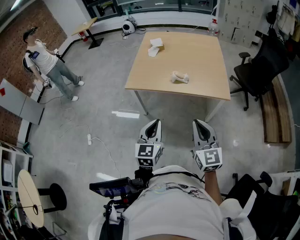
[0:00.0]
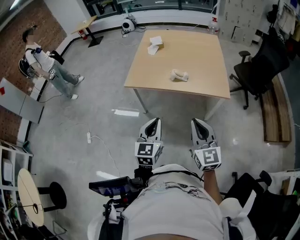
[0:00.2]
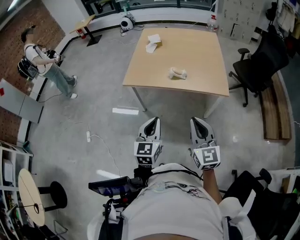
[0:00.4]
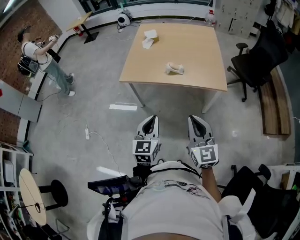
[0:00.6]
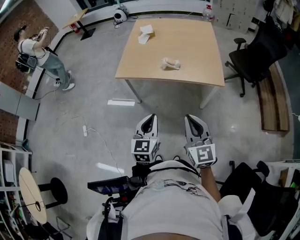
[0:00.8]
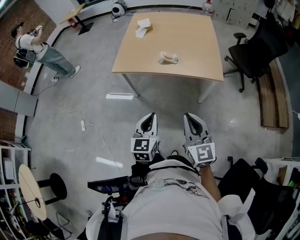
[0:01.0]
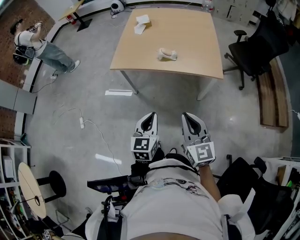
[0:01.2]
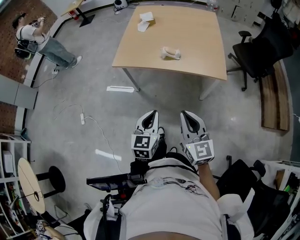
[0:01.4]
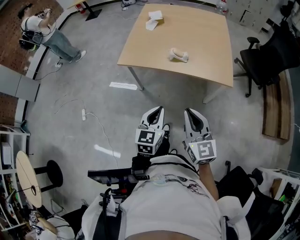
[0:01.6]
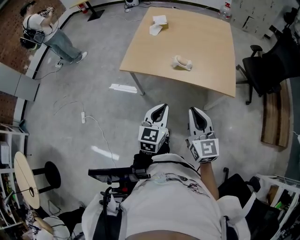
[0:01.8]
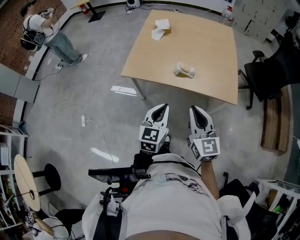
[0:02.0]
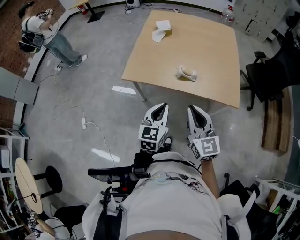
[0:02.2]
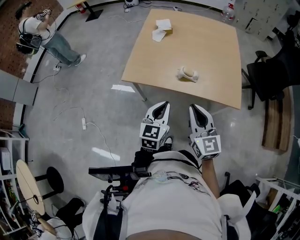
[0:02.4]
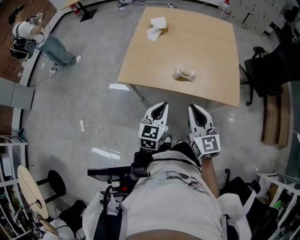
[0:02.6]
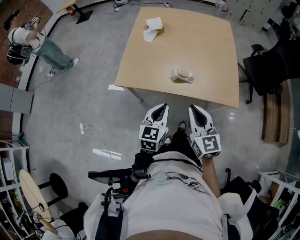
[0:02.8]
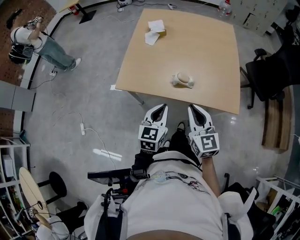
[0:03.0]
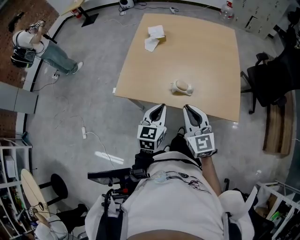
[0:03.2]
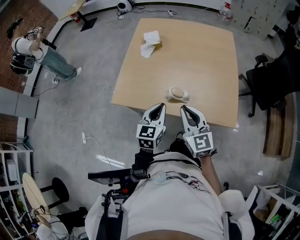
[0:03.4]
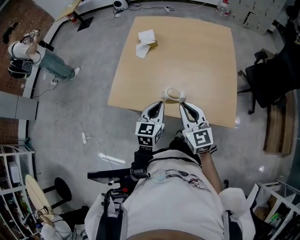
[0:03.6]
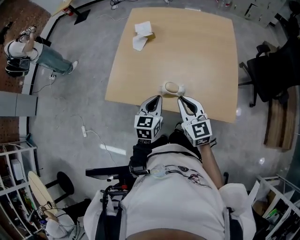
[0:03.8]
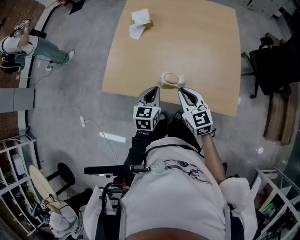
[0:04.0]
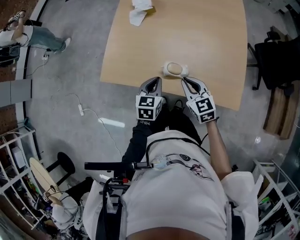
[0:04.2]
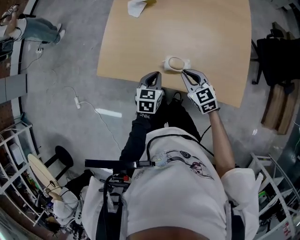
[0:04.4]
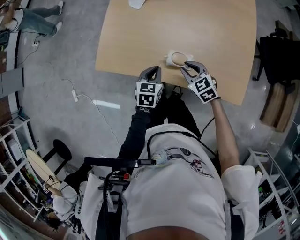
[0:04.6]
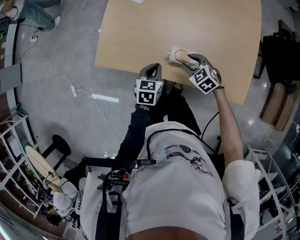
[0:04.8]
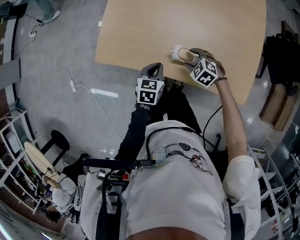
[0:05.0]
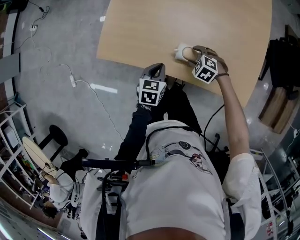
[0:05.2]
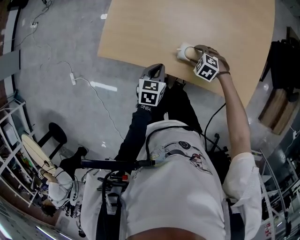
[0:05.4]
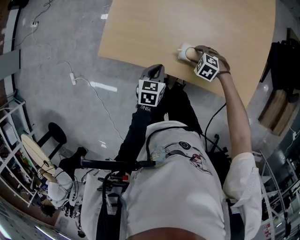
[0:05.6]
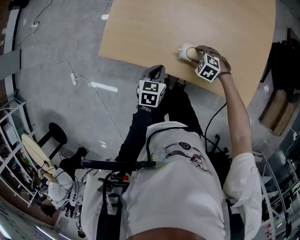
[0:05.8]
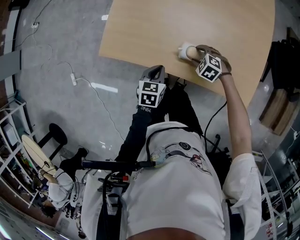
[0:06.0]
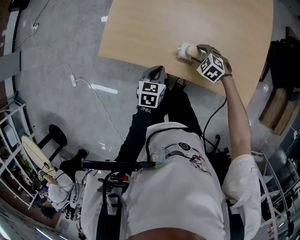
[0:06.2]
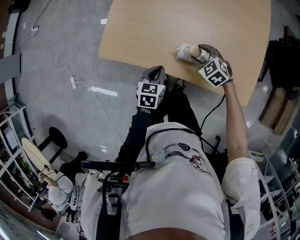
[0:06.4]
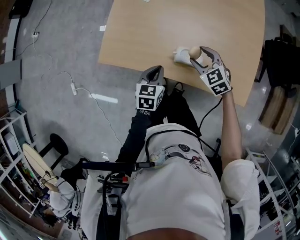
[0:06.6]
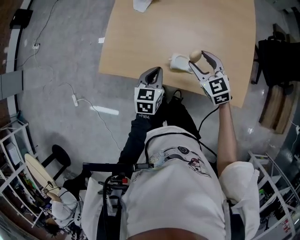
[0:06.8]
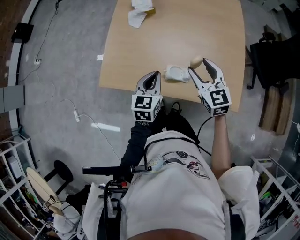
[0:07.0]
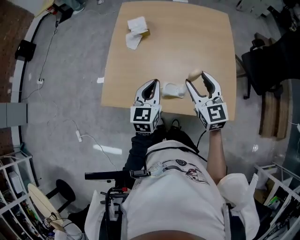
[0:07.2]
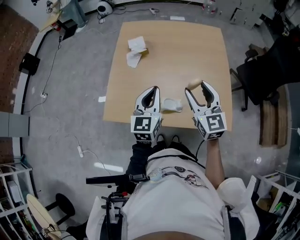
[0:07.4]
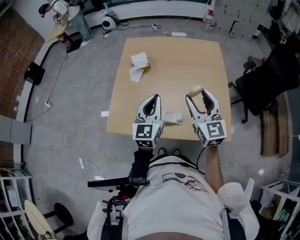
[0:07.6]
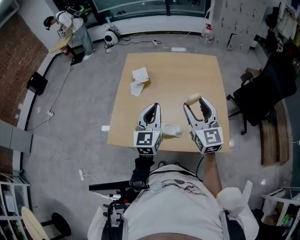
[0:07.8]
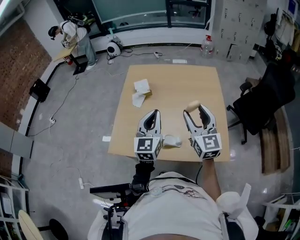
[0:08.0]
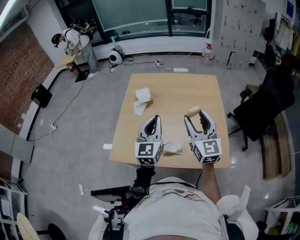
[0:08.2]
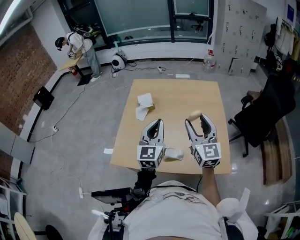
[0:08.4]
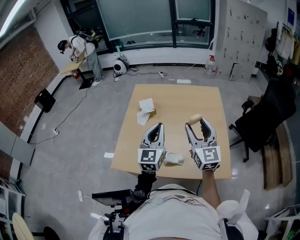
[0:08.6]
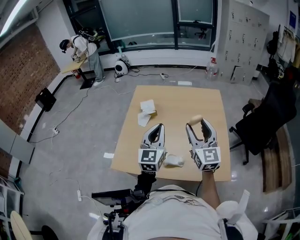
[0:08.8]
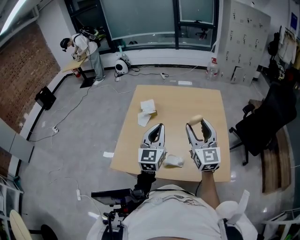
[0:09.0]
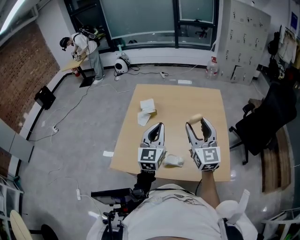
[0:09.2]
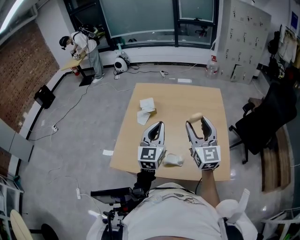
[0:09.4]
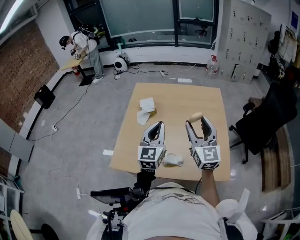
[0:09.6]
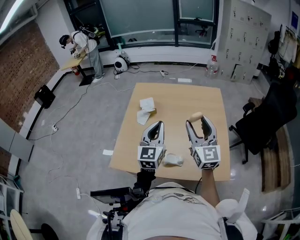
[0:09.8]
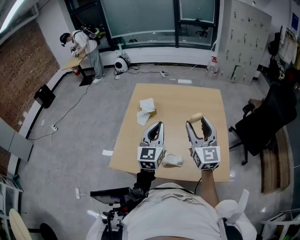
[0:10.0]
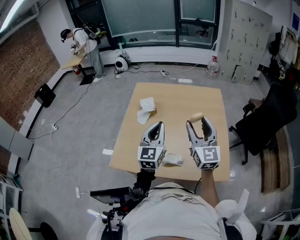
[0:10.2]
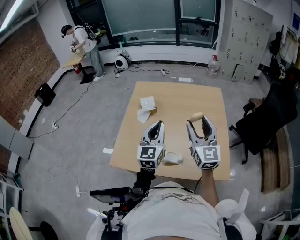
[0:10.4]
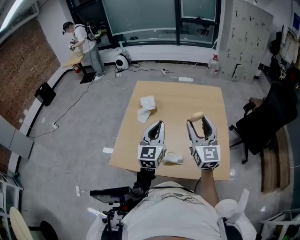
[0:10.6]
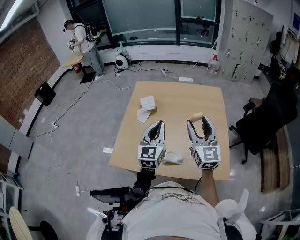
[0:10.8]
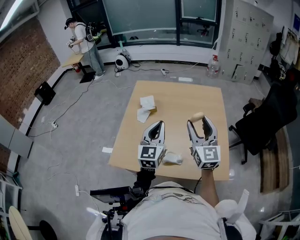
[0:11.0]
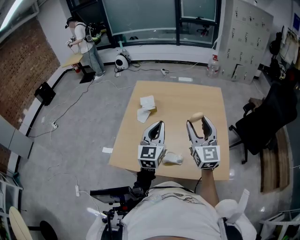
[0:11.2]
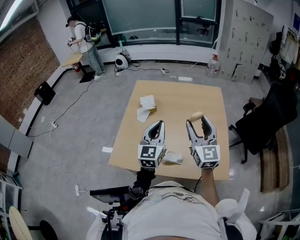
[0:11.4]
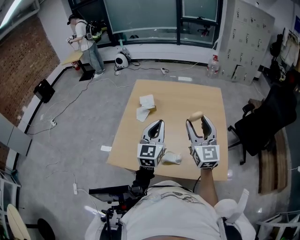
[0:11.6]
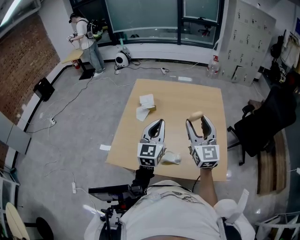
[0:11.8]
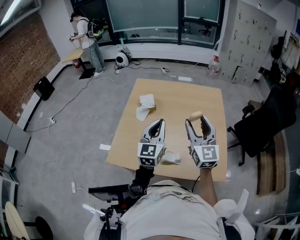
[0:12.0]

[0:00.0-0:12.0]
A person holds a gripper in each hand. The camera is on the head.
0:00.0 to 0:01.6: The right gripper moves about 5 cm; the left gripper heads to the right and downward, covering some 10 cm.
0:01.6 to 0:03.0: Both grippers travel together forward, about 25 cm.
0:03.0 to 0:04.4: Both grippers move forward and downward, approximately 25 cm. The right gripper rotates approximately 30 degrees. The left gripper swivels about 20 degrees.
0:04.4 to 0:06.0: The left gripper shifts roughly 10 cm downward and to the left, while the right gripper heads downward, covering approximately 15 cm, points its fingers roughly 40 degrees further downward, and opens up.
0:06.0 to 0:07.6: The grippers both shift upward by roughly 35 cm. The right gripper tilts its fingers about 70 degrees upward. The left gripper angles its fingers upward, by about 40 degrees.
0:07.6 to 0:09.0: The right gripper heads upward, covering approximately 5 cm; the left gripper ends up about 5 cm from where it was.
0:09.0 to 0:10.4: Neither gripper changes place.
0:10.4 to 0:12.0: Neither gripper changes place.

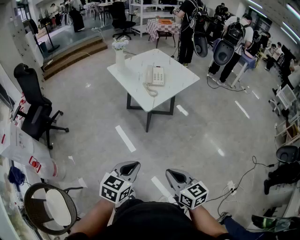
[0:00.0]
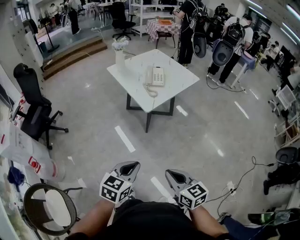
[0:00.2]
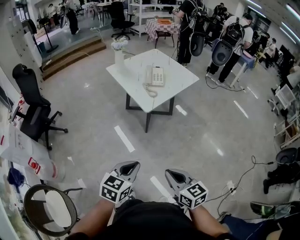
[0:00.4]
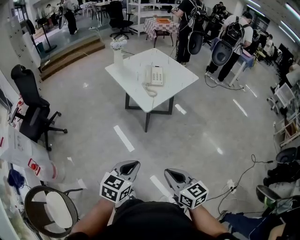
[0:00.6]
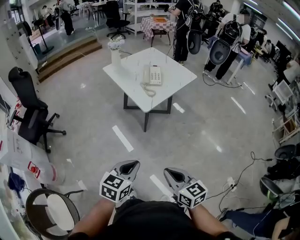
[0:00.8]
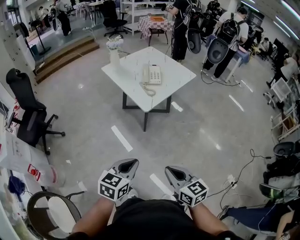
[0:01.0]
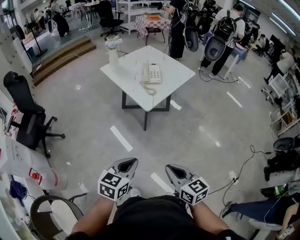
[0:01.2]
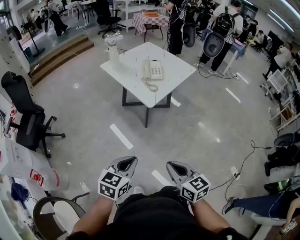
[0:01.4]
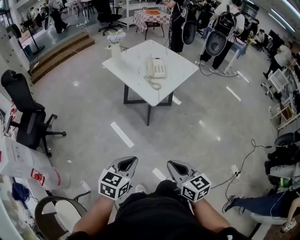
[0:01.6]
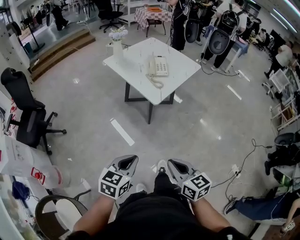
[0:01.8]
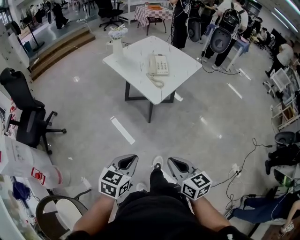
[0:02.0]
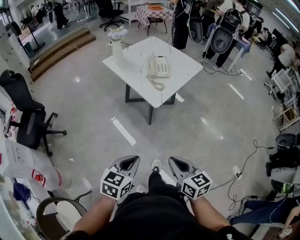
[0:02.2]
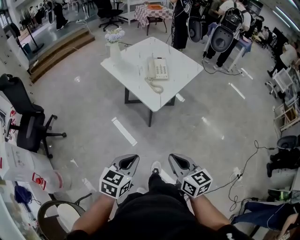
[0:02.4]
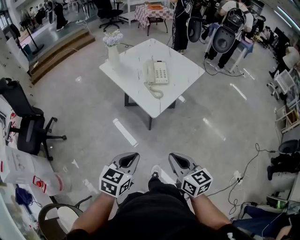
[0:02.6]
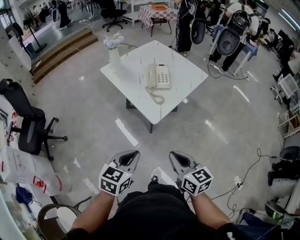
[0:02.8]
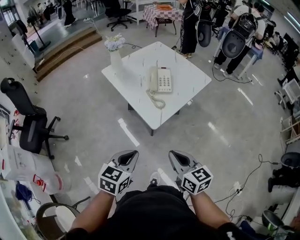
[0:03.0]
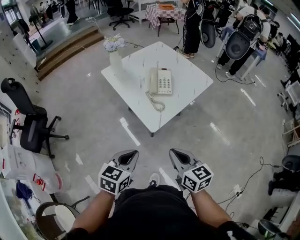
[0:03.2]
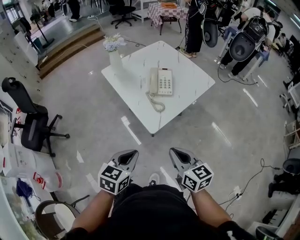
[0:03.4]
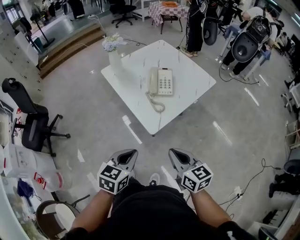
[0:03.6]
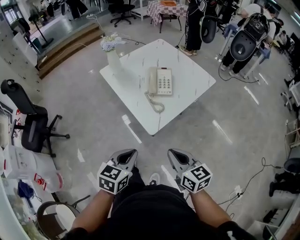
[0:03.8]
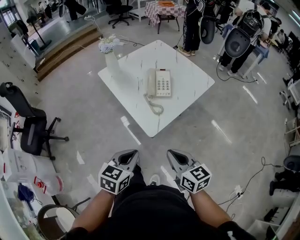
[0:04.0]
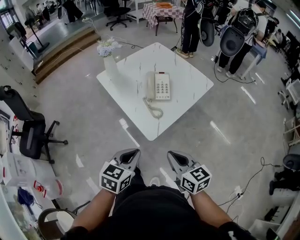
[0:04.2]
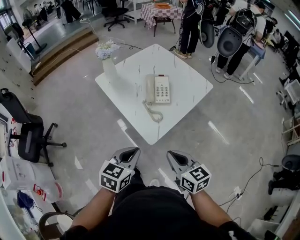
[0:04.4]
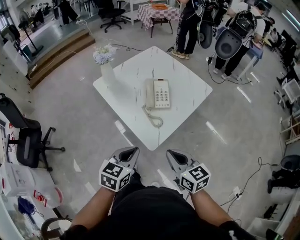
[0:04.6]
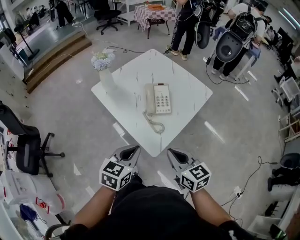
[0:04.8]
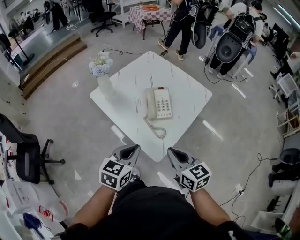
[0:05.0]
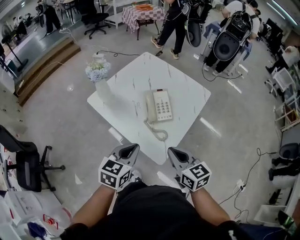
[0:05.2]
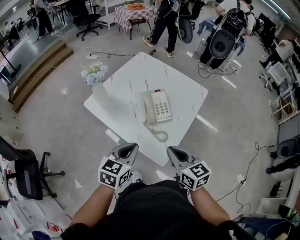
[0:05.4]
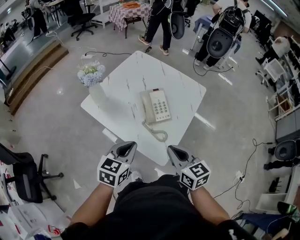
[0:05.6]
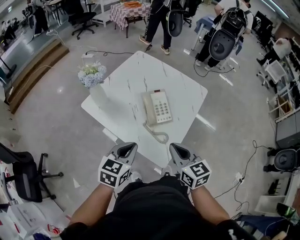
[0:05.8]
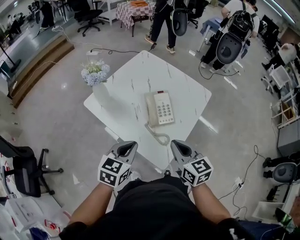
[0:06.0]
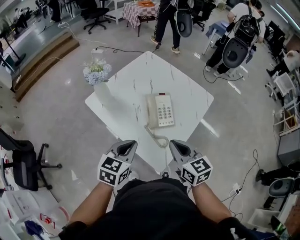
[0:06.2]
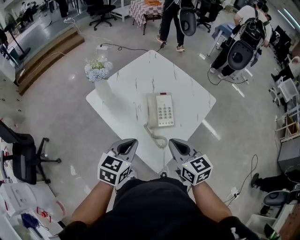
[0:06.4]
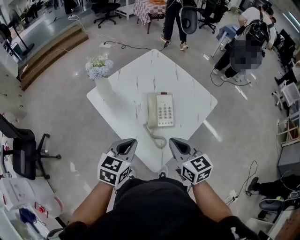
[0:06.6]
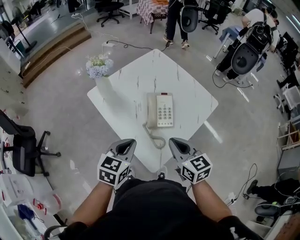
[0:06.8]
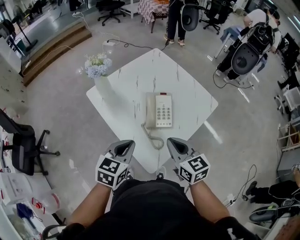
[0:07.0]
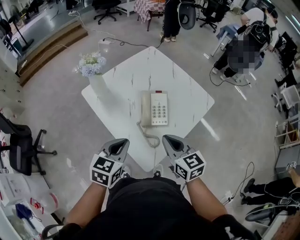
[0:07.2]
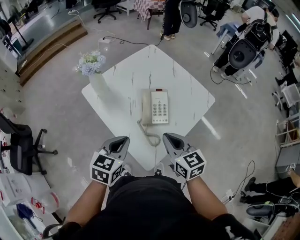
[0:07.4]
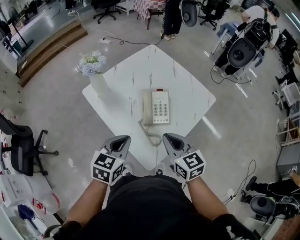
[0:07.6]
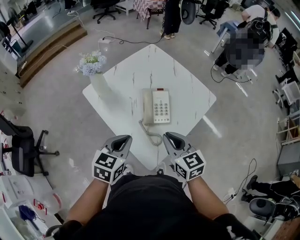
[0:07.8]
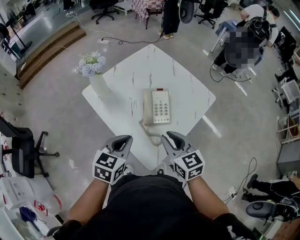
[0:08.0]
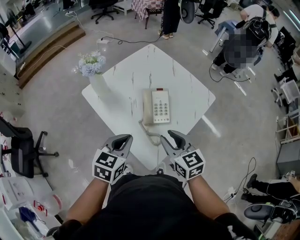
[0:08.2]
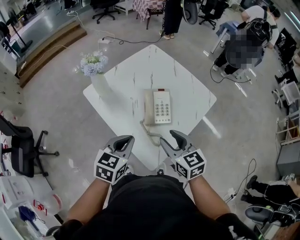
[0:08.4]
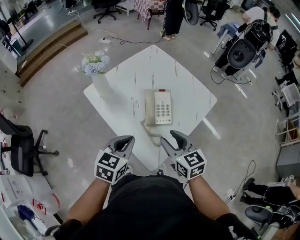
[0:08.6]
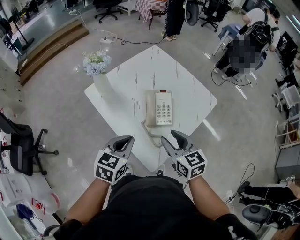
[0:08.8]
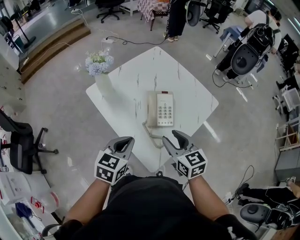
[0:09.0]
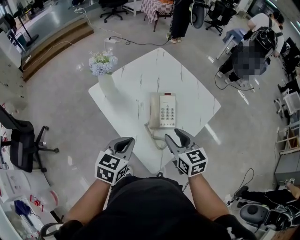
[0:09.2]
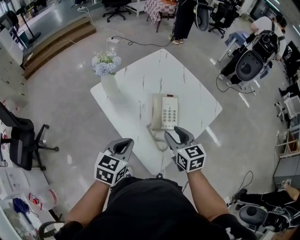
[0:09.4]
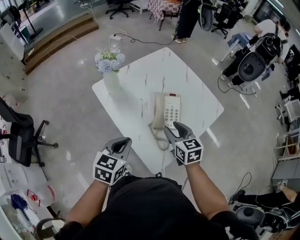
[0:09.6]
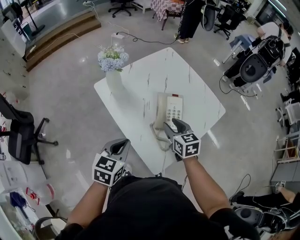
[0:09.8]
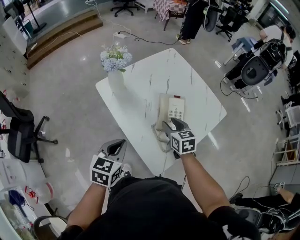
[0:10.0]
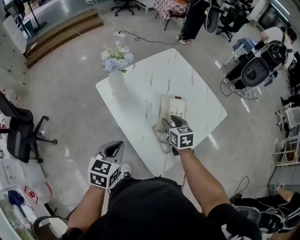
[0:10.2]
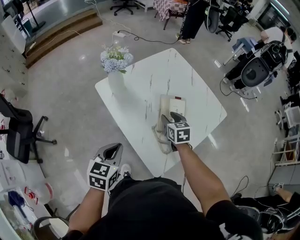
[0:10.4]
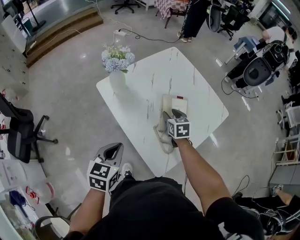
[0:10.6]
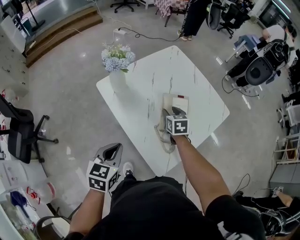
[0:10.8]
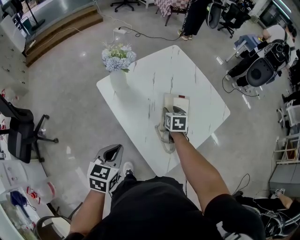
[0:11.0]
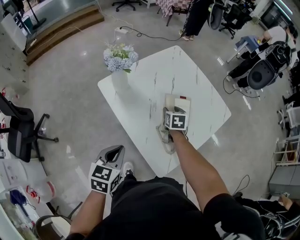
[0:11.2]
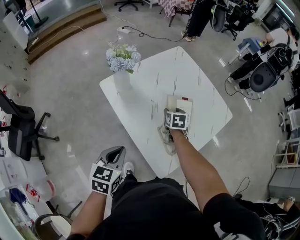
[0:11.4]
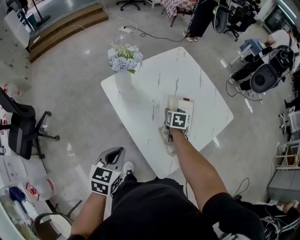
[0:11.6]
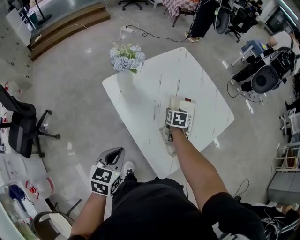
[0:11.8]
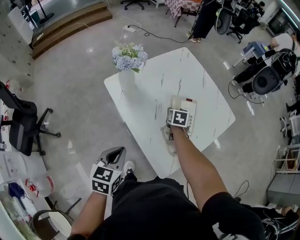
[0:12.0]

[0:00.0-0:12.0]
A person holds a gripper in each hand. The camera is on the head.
0:00.0 to 0:01.6: The two grippers go roughly 10 cm to the left.
0:01.6 to 0:03.0: The two grippers go about 25 cm forward.
0:03.0 to 0:04.4: The two grippers go some 10 cm forward.
0:04.4 to 0:06.0: The right gripper is displaced forward by roughly 20 cm. Meanwhile the left gripper is displaced forward and to the left by approximately 20 cm.
0:06.0 to 0:07.6: The right gripper changes place by approximately 5 cm.
0:07.6 to 0:09.0: The right gripper opens.
0:09.0 to 0:10.4: The left gripper heads to the left, covering roughly 10 cm. The right gripper travels forward and downward by roughly 20 cm.
0:10.4 to 0:12.0: The right gripper travels downward and forward by approximately 10 cm, and rotates approximately 20 degrees.
